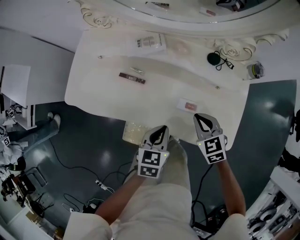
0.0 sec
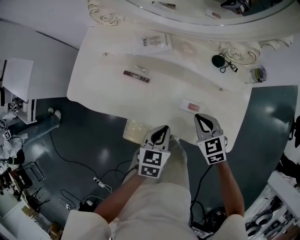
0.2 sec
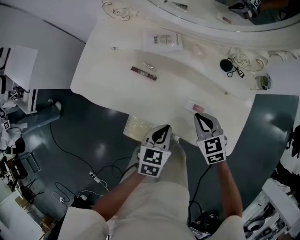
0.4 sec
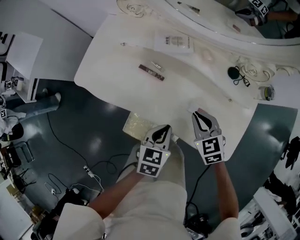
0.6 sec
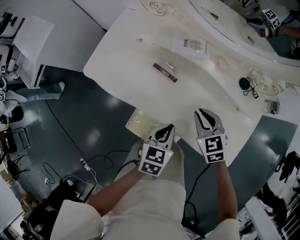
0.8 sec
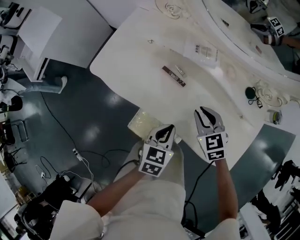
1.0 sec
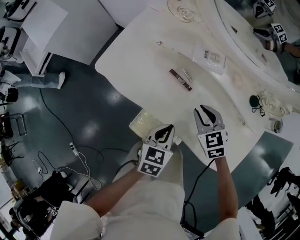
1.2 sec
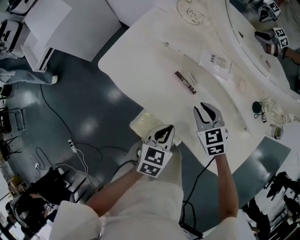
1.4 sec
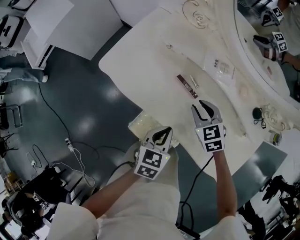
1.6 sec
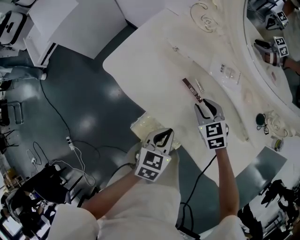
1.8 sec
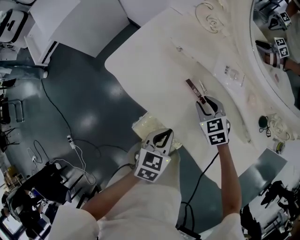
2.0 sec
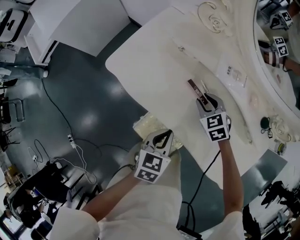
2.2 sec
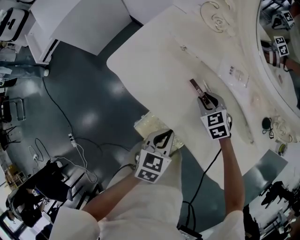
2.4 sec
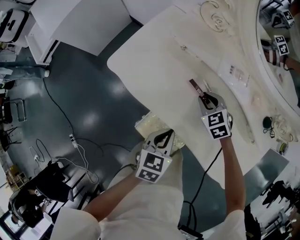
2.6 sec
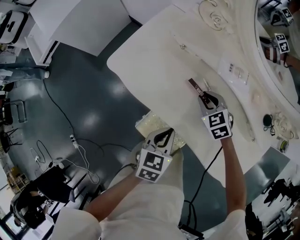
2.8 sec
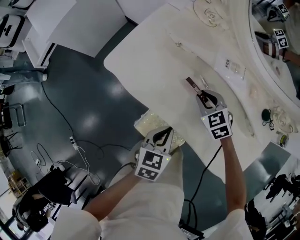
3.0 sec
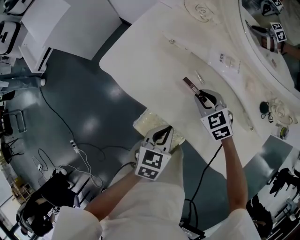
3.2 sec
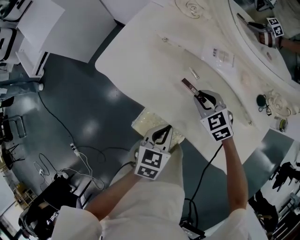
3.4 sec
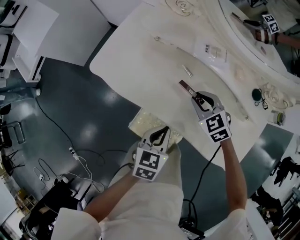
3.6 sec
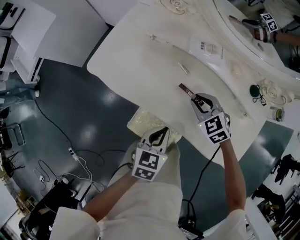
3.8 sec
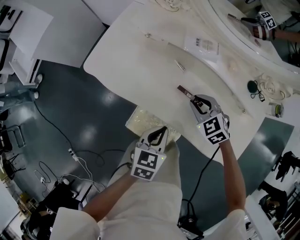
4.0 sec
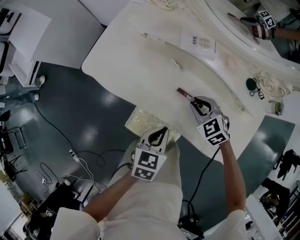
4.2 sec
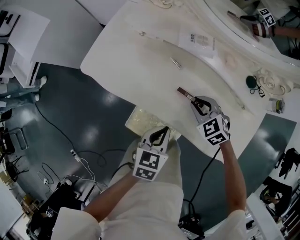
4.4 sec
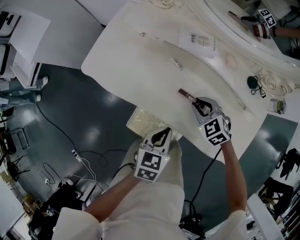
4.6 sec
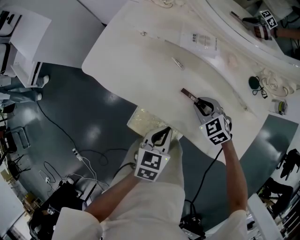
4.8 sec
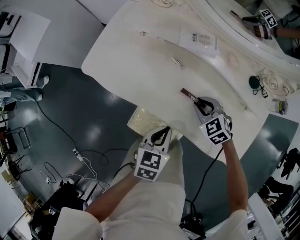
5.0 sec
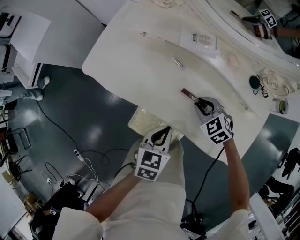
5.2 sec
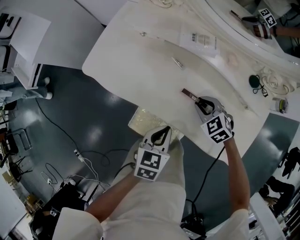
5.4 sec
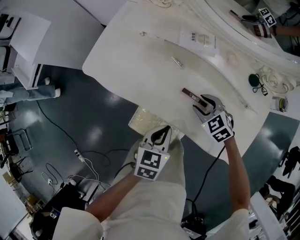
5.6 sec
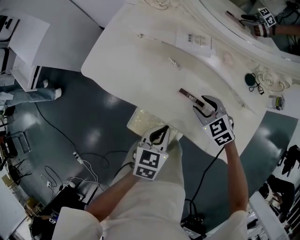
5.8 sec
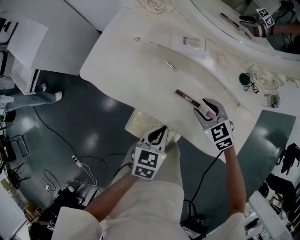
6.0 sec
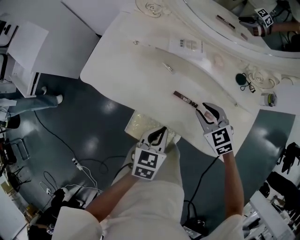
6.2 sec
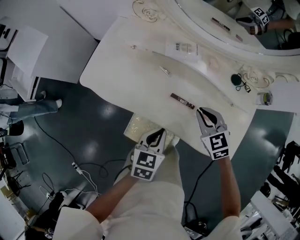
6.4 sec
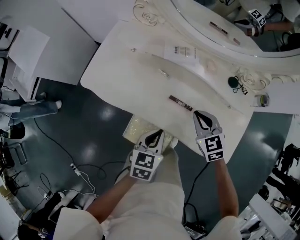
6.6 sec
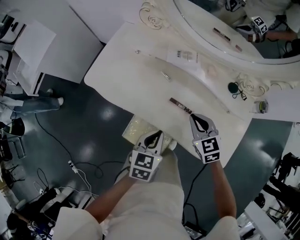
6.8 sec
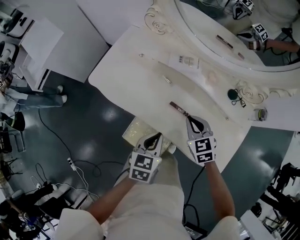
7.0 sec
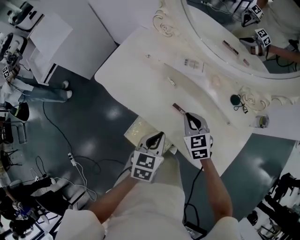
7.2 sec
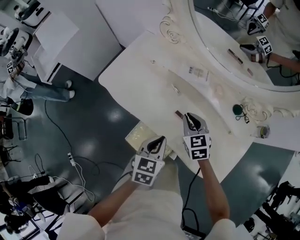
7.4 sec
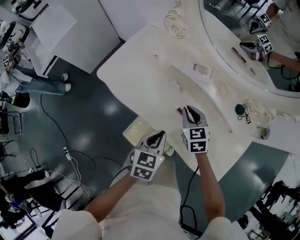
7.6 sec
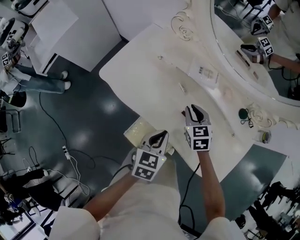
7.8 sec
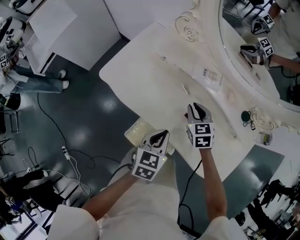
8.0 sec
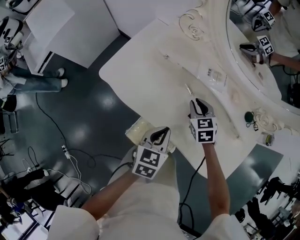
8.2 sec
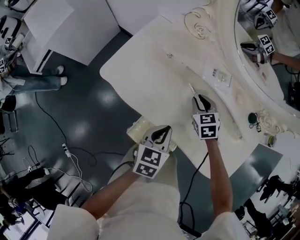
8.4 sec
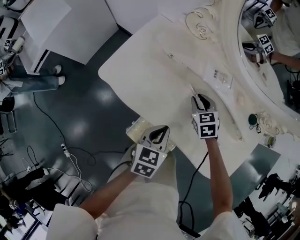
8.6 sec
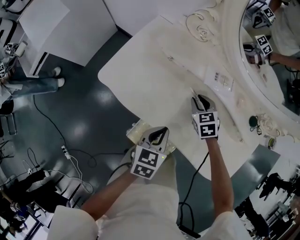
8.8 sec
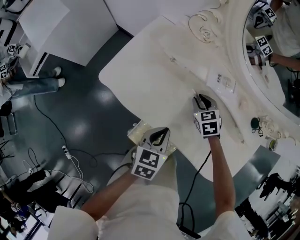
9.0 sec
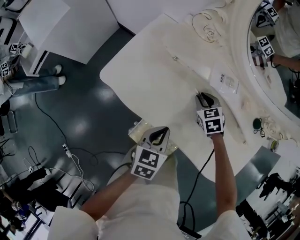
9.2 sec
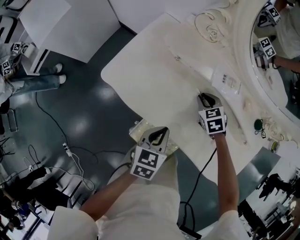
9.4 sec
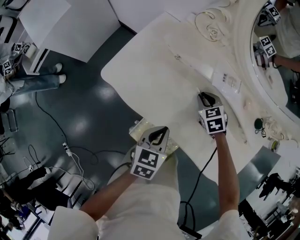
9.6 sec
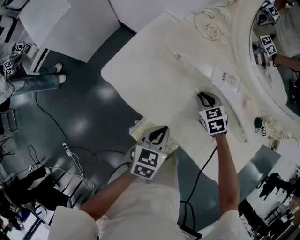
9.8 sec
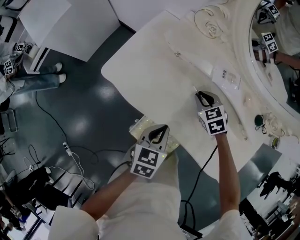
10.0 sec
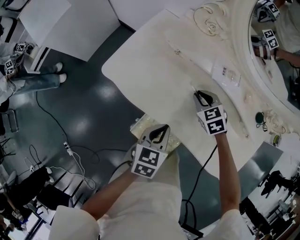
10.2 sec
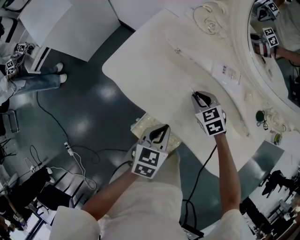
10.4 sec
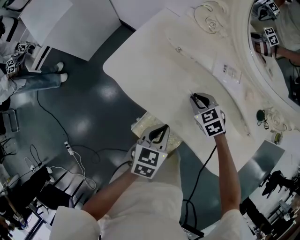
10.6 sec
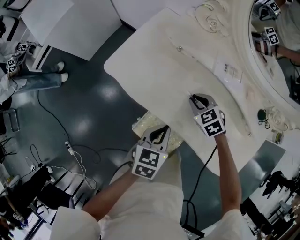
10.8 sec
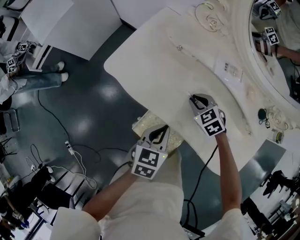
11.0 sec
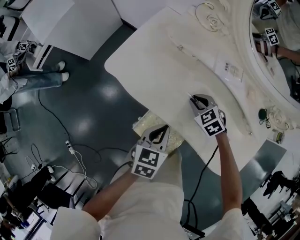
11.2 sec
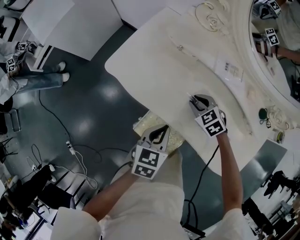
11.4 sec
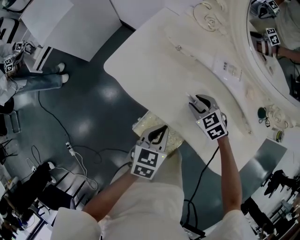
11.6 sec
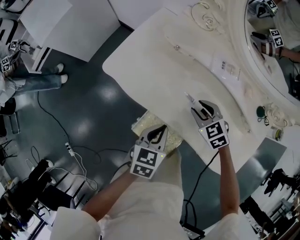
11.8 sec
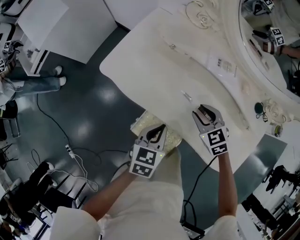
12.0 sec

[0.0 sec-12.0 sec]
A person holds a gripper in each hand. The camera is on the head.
0.0 sec to 1.6 sec: The left gripper shifts approximately 15 cm to the left. Meanwhile the right gripper moves to the left and forward, about 25 cm, changes its angle by some 20 degrees, and opens its fingers.
1.6 sec to 3.0 sec: The right gripper moves some 5 cm.
3.0 sec to 4.4 sec: The left gripper goes roughly 10 cm to the right and backward; the right gripper shifts about 15 cm backward and to the right.
4.4 sec to 6.0 sec: The right gripper shifts by approximately 5 cm, and opens its fingers.
6.0 sec to 7.6 sec: The right gripper shifts about 10 cm to the left and forward, and closes up.
7.6 sec to 9.0 sec: The left gripper moves to the left and forward, approximately 10 cm. Meanwhile the right gripper shifts approximately 15 cm forward and downward.
9.0 sec to 10.4 sec: The right gripper moves about 5 cm.
10.4 sec to 12.0 sec: The right gripper shifts some 10 cm backward.

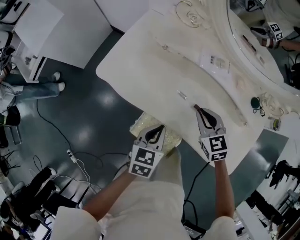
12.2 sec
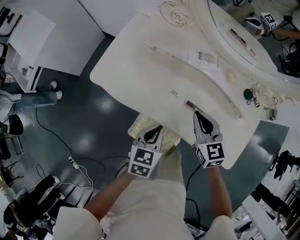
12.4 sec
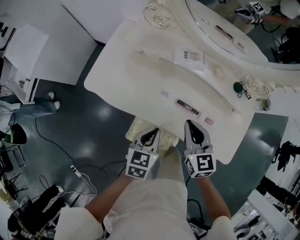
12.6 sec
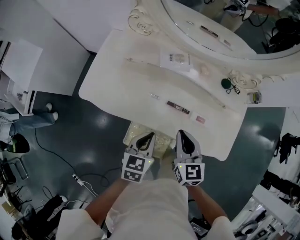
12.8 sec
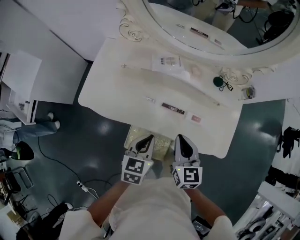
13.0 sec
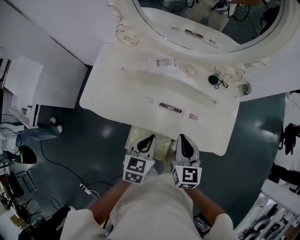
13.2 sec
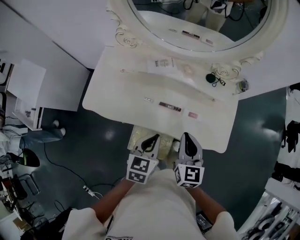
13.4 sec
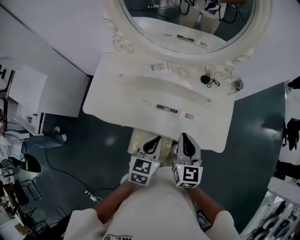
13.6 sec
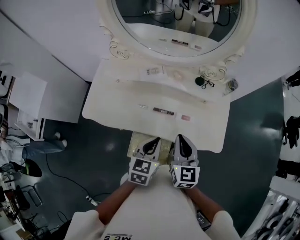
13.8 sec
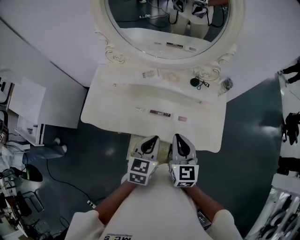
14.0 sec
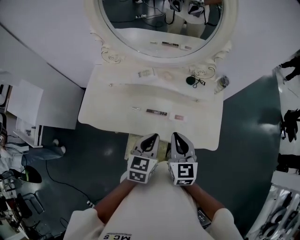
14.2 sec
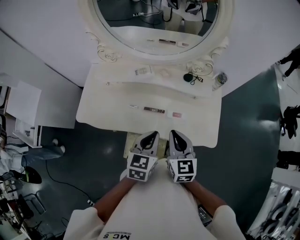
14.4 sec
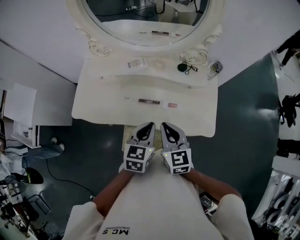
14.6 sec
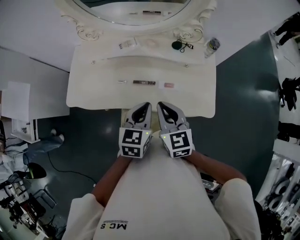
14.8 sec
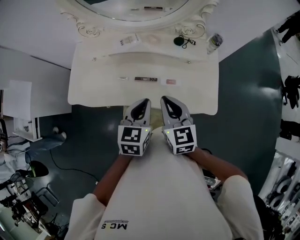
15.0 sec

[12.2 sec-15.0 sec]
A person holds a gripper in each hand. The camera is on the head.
12.2 sec to 13.6 sec: The left gripper shifts by roughly 20 cm, and rotates about 20 degrees; the right gripper changes place by approximately 20 cm, and rotates some 50 degrees.
13.6 sec to 15.0 sec: The left gripper changes place by about 5 cm.

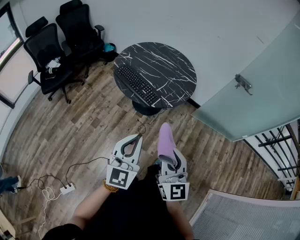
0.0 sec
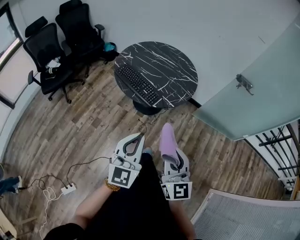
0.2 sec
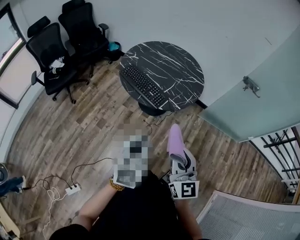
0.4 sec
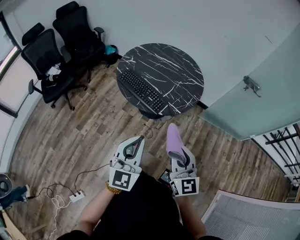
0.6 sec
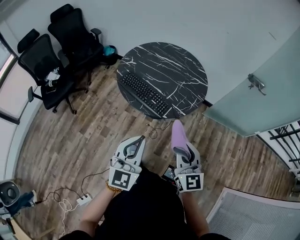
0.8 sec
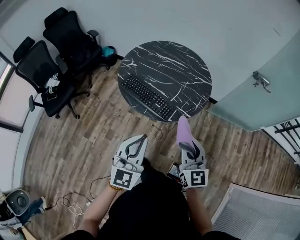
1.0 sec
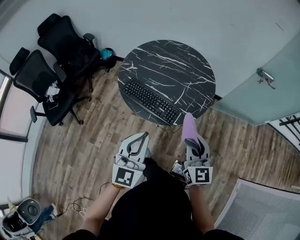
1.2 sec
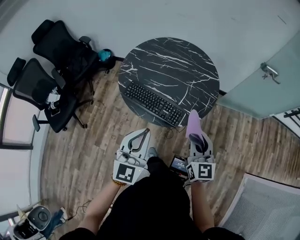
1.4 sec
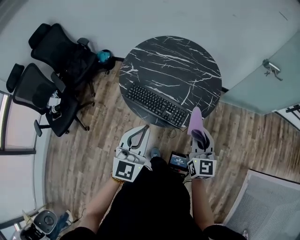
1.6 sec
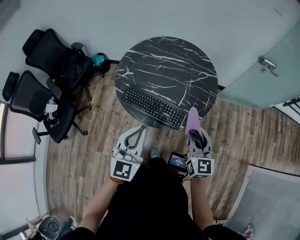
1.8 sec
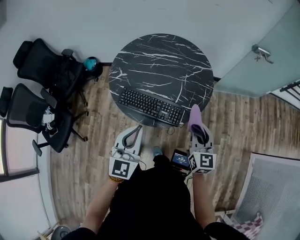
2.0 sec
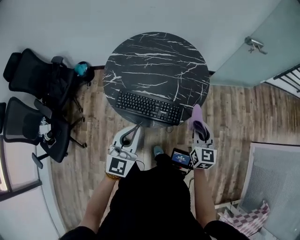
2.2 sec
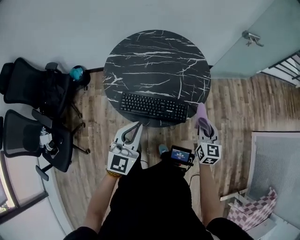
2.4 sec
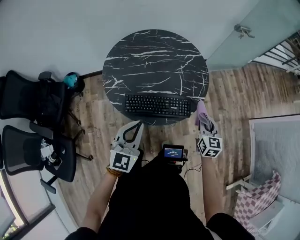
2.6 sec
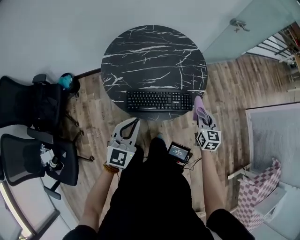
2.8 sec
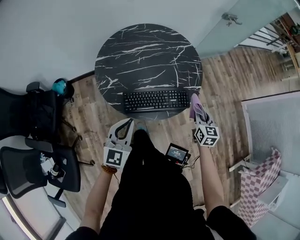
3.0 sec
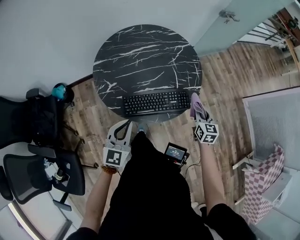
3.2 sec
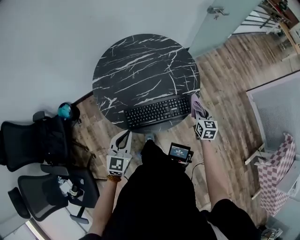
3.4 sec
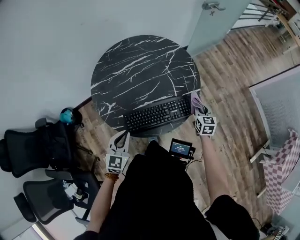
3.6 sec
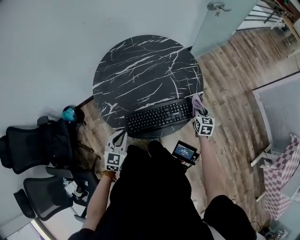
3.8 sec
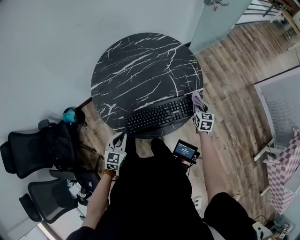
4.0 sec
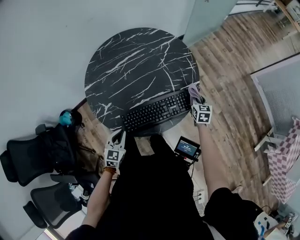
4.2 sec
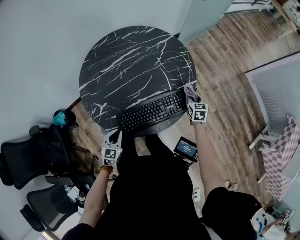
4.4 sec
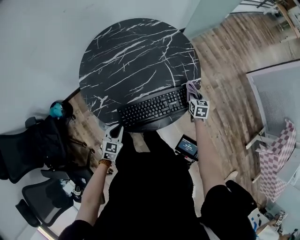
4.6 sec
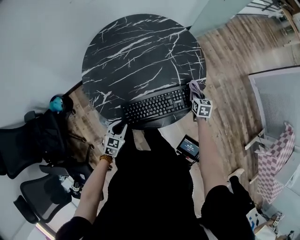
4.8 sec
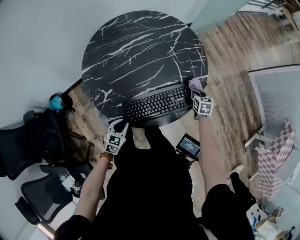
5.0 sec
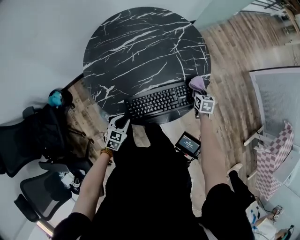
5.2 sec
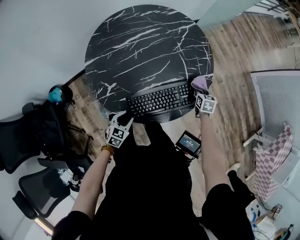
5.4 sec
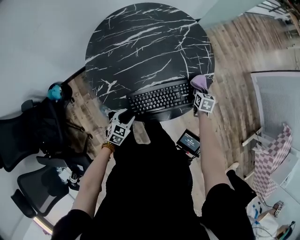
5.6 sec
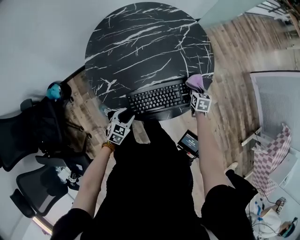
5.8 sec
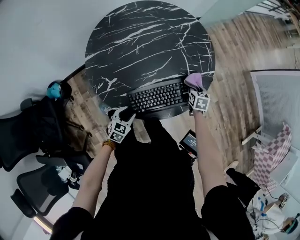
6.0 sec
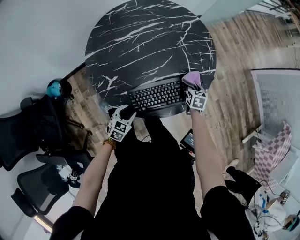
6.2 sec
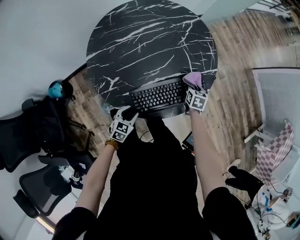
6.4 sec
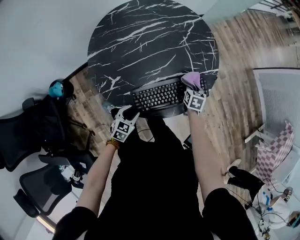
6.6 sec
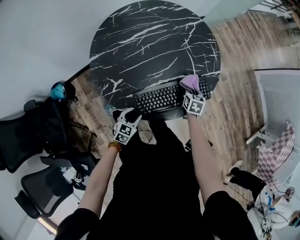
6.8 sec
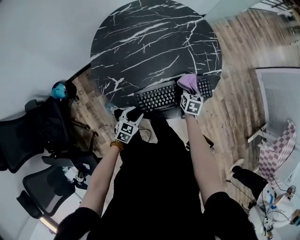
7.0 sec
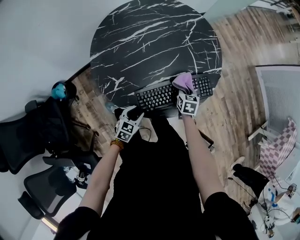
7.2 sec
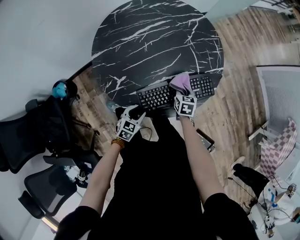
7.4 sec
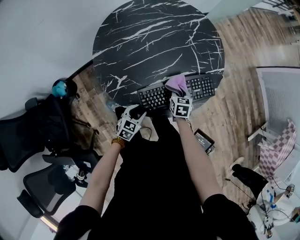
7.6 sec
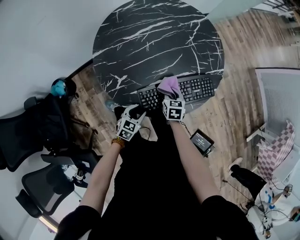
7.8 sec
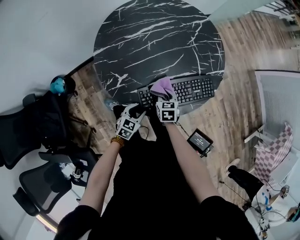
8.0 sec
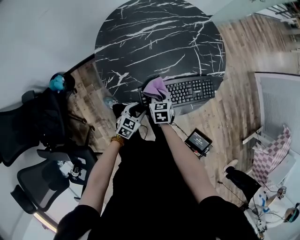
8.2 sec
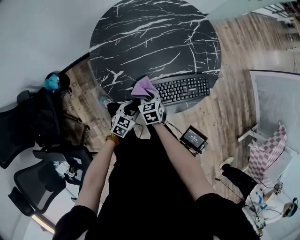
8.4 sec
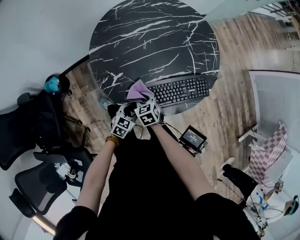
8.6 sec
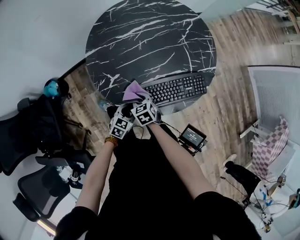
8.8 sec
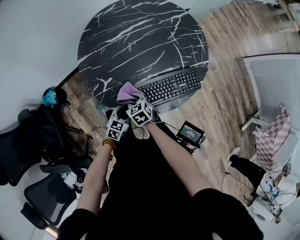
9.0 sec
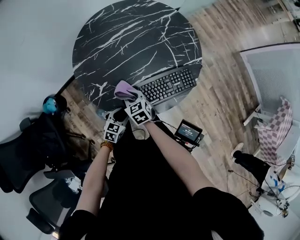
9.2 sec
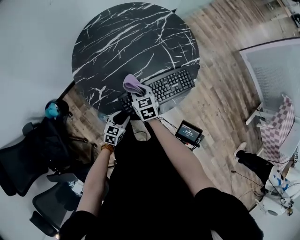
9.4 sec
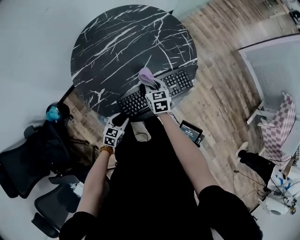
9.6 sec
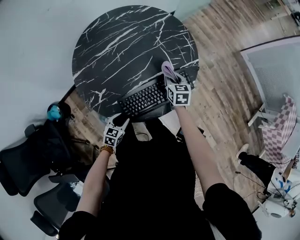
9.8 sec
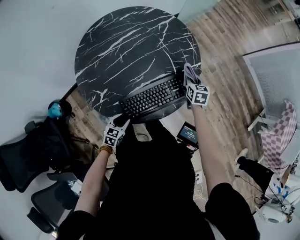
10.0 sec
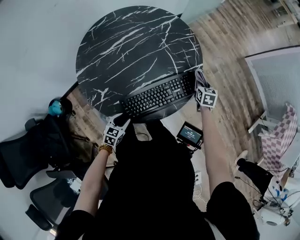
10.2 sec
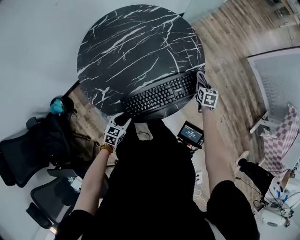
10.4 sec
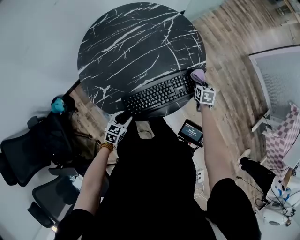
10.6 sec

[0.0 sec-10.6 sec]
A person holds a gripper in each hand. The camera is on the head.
0.0 sec to 1.6 sec: The right gripper is displaced forward by approximately 30 cm, and swivels roughly 30 degrees; the left gripper shifts about 35 cm forward and to the left, and swivels approximately 20 degrees.
1.6 sec to 3.0 sec: The right gripper heads downward, covering some 10 cm, and changes its angle by about 40 degrees, while the left gripper moves roughly 25 cm, and swivels approximately 30 degrees.
3.0 sec to 4.6 sec: The right gripper moves downward and forward, approximately 20 cm, and rotates some 20 degrees. Meanwhile the left gripper moves downward, some 25 cm, and points its fingers roughly 30 degrees further downward.
4.6 sec to 6.0 sec: The right gripper is displaced to the left by some 5 cm. The left gripper moves downward, roughly 5 cm, and opens its fingers.
6.0 sec to 7.6 sec: The right gripper moves to the left and backward, approximately 15 cm.
7.6 sec to 9.0 sec: The right gripper travels to the left and backward by roughly 20 cm, and rotates about 30 degrees.
9.0 sec to 10.6 sec: The right gripper travels upward and back again, roughly 5 cm each way, and swivels about 40 degrees.
